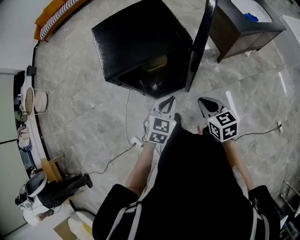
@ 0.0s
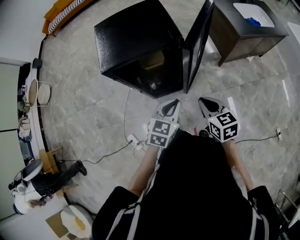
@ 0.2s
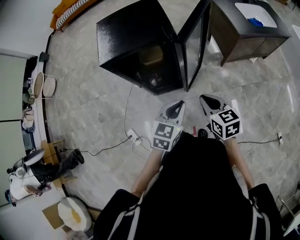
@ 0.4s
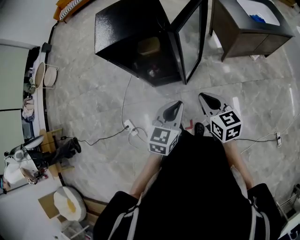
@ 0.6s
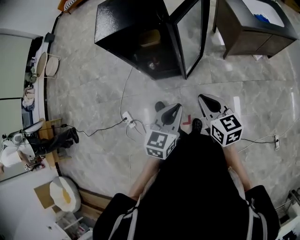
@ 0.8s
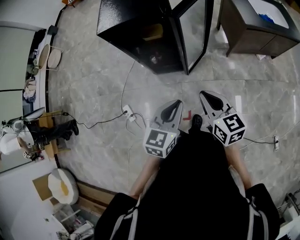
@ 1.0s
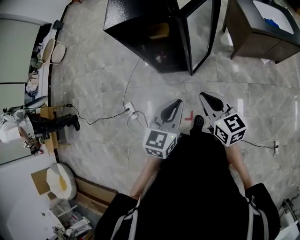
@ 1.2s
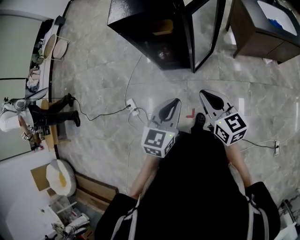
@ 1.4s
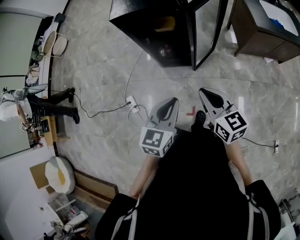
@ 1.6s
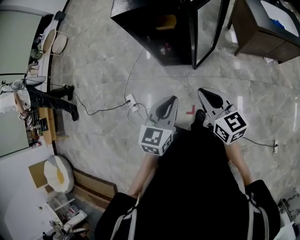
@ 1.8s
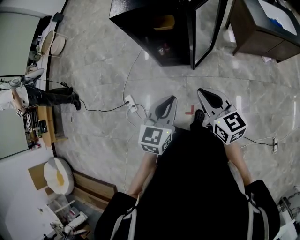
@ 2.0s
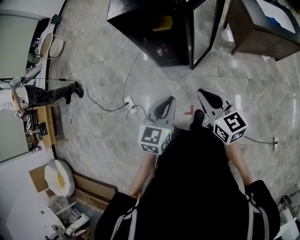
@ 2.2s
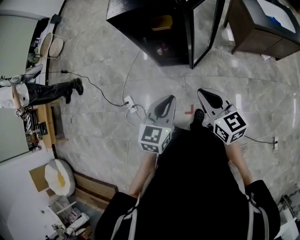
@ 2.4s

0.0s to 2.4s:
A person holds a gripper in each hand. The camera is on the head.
0.0s to 1.2s: The two grippers go roughly 25 cm backward and to the right. The left gripper turns by about 30 degrees, while the right gripper rotates some 20 degrees.
1.2s to 2.4s: The left gripper travels to the left by about 5 cm.

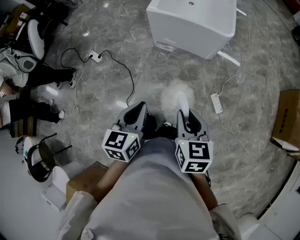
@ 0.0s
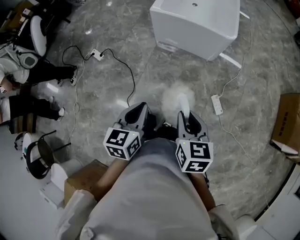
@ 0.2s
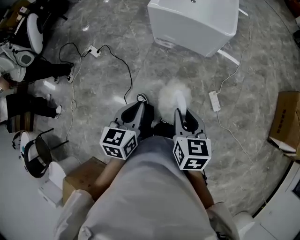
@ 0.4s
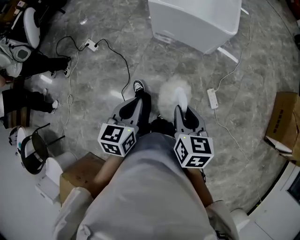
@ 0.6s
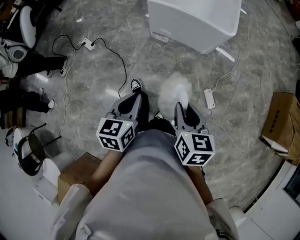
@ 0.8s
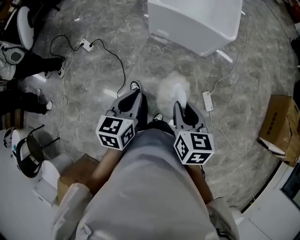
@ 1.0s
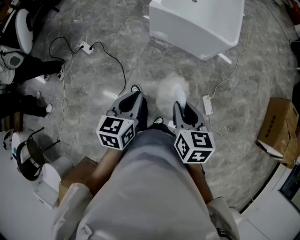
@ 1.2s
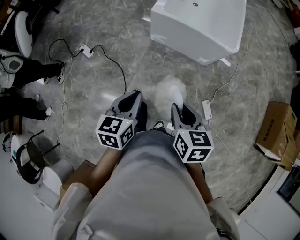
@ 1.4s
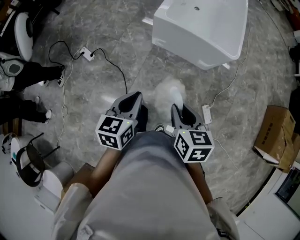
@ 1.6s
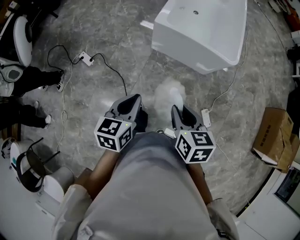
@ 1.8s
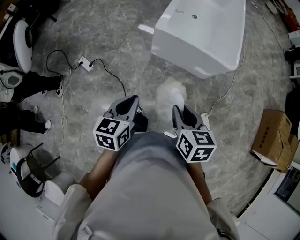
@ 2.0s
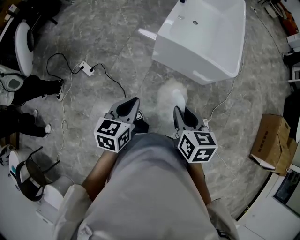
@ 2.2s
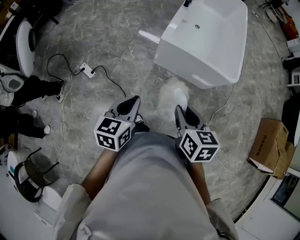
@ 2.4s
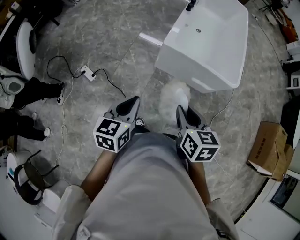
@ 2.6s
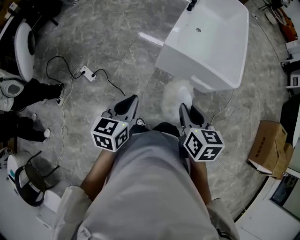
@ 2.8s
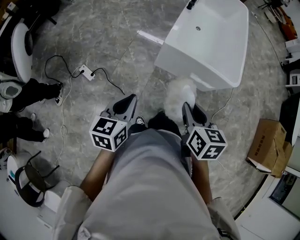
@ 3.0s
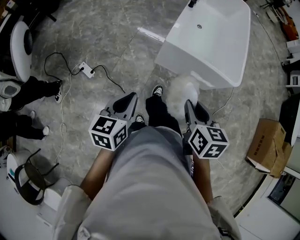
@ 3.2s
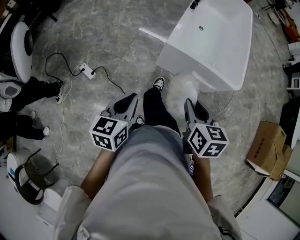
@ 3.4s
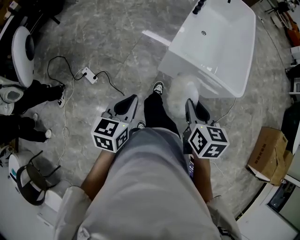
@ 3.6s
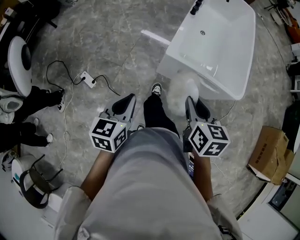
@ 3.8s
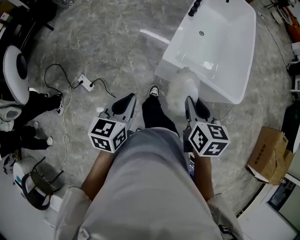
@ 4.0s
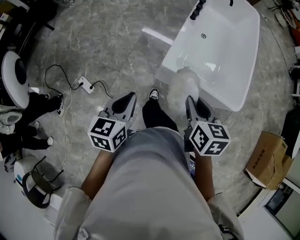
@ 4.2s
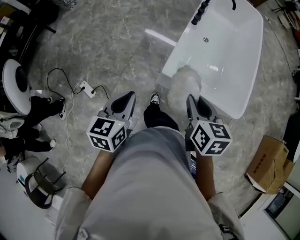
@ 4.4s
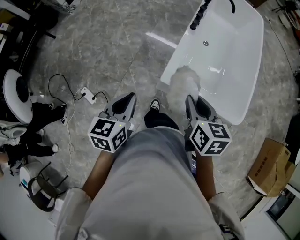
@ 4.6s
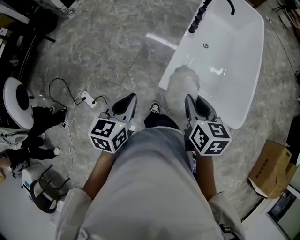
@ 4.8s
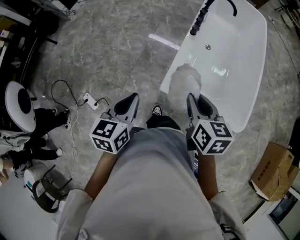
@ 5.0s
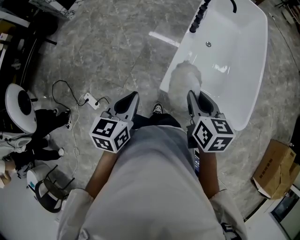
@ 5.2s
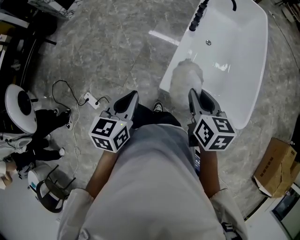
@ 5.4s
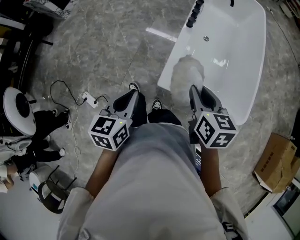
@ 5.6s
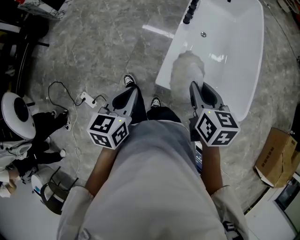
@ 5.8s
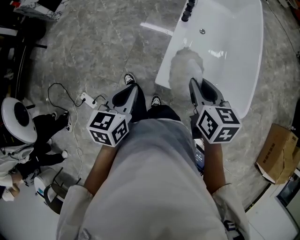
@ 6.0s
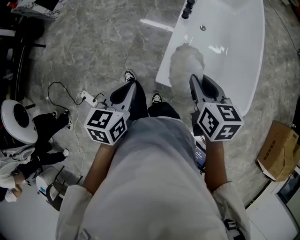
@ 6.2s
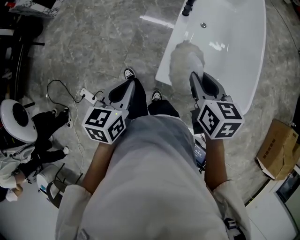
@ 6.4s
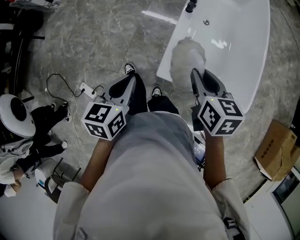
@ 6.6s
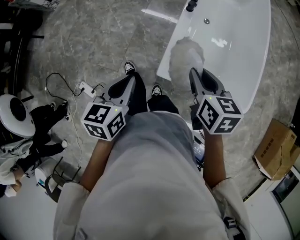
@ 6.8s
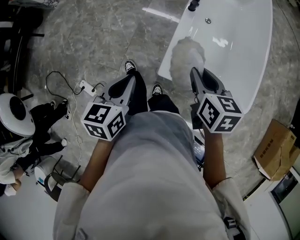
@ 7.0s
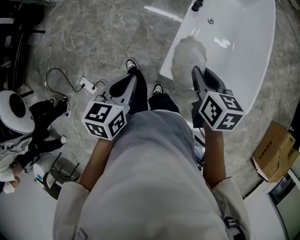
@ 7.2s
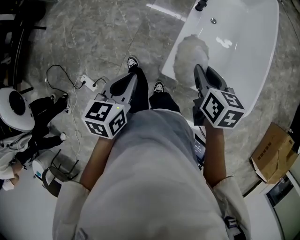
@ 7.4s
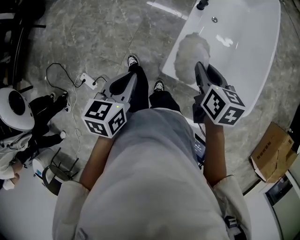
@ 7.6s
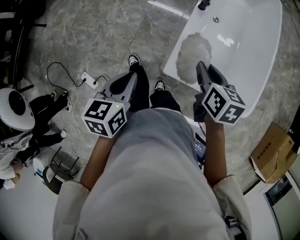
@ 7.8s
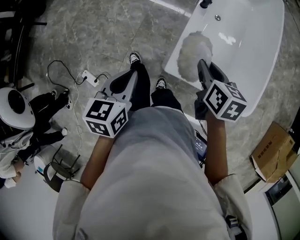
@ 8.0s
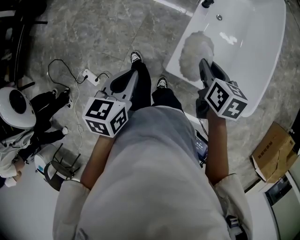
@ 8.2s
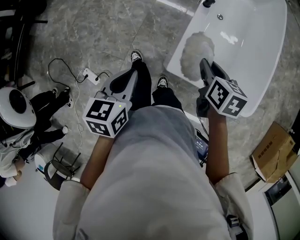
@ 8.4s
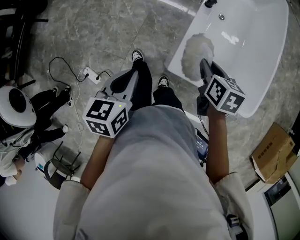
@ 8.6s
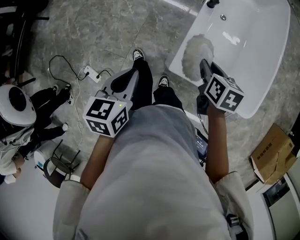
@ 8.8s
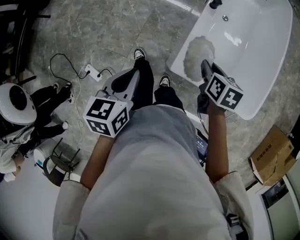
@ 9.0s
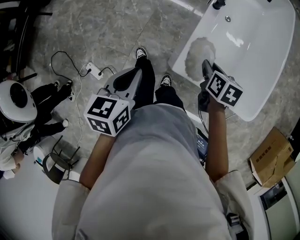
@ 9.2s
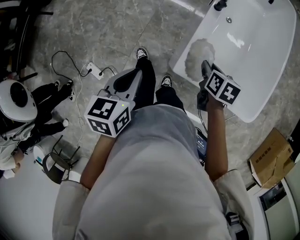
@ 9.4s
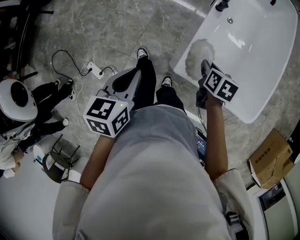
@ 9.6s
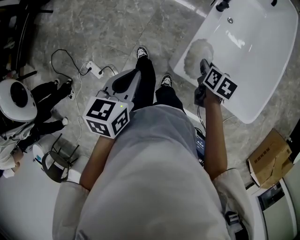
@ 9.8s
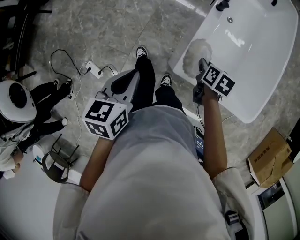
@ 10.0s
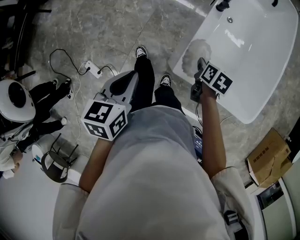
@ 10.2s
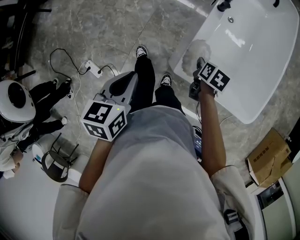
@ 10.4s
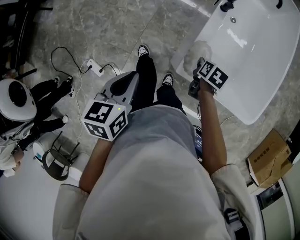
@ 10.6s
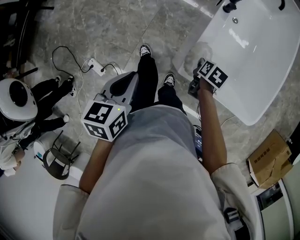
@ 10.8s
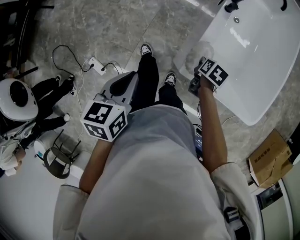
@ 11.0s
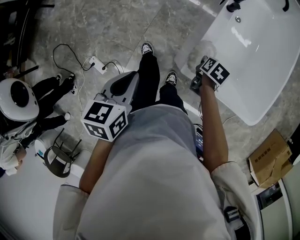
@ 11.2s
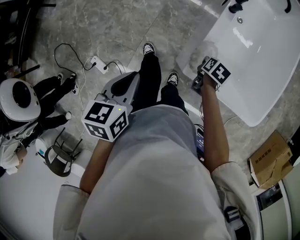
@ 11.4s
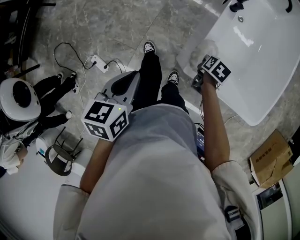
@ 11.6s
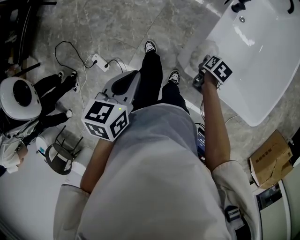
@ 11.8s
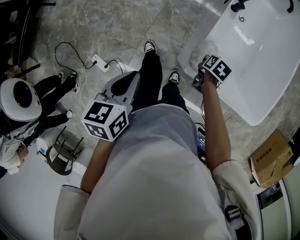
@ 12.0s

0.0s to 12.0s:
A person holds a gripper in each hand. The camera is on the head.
0.0s to 1.6s: The grippers both shift forward and to the left by about 20 cm.
1.6s to 3.0s: The right gripper heads forward and to the left, covering some 20 cm. The left gripper is displaced to the left and forward by some 20 cm.
3.0s to 4.4s: The grippers both shift forward by roughly 30 cm.
4.4s to 6.0s: Both grippers move forward, roughly 15 cm.
6.0s to 7.6s: The right gripper moves forward and downward, roughly 10 cm. The left gripper ends up roughly 5 cm from where it was.
7.6s to 9.0s: The right gripper goes some 10 cm downward.
9.0s to 10.4s: The right gripper is displaced downward by approximately 10 cm.
10.4s to 12.0s: The right gripper is displaced downward by roughly 5 cm.

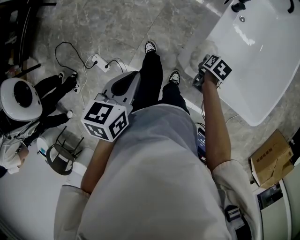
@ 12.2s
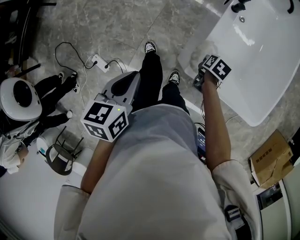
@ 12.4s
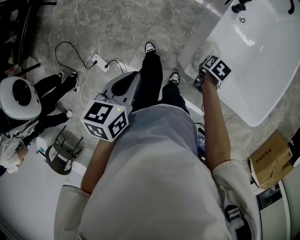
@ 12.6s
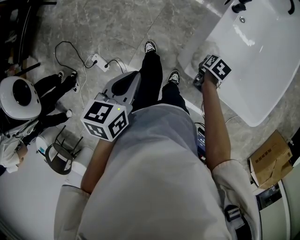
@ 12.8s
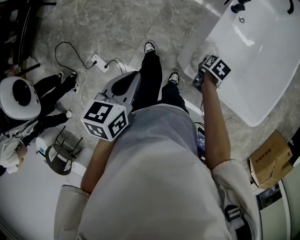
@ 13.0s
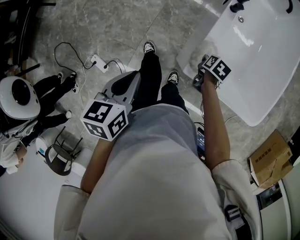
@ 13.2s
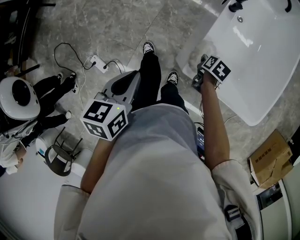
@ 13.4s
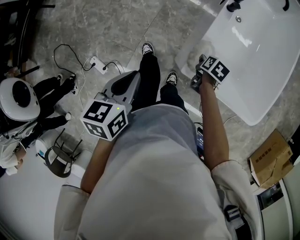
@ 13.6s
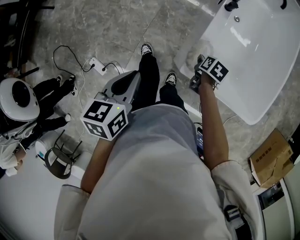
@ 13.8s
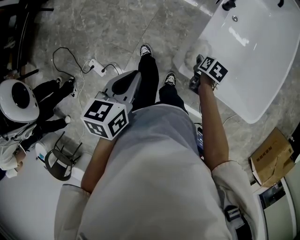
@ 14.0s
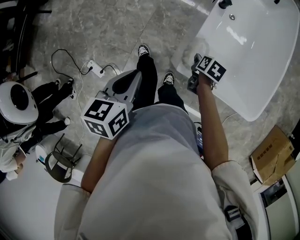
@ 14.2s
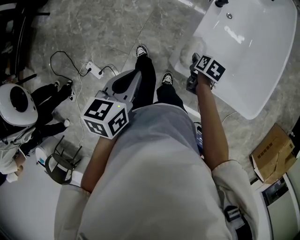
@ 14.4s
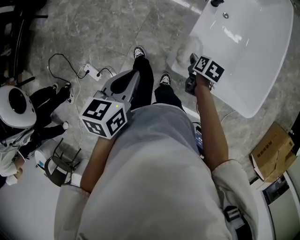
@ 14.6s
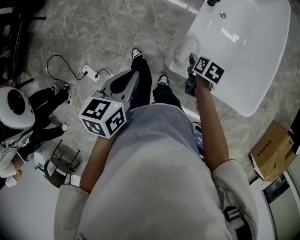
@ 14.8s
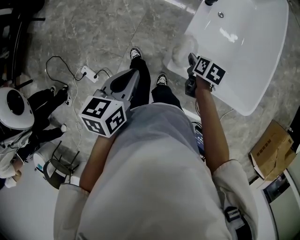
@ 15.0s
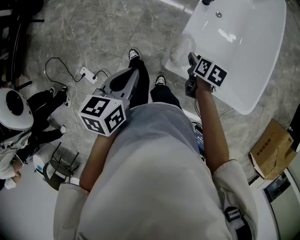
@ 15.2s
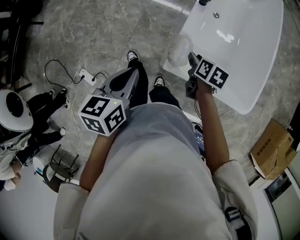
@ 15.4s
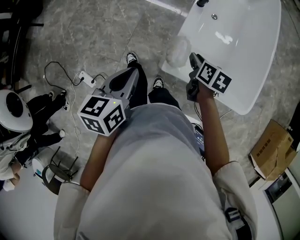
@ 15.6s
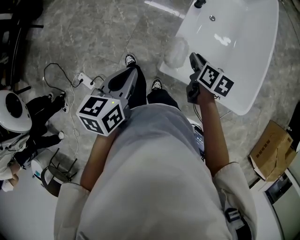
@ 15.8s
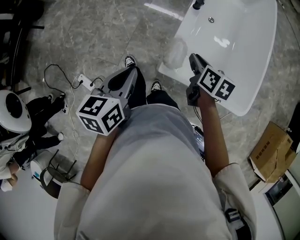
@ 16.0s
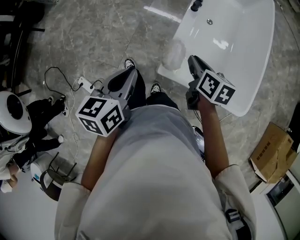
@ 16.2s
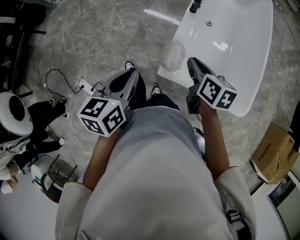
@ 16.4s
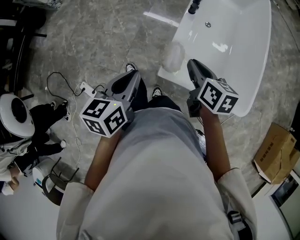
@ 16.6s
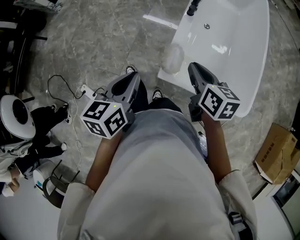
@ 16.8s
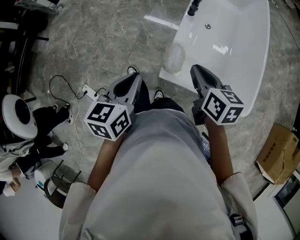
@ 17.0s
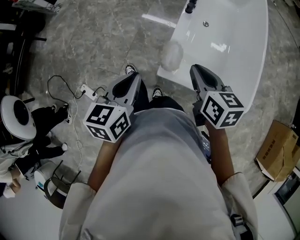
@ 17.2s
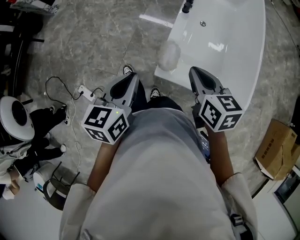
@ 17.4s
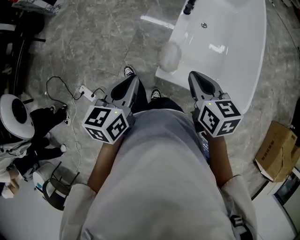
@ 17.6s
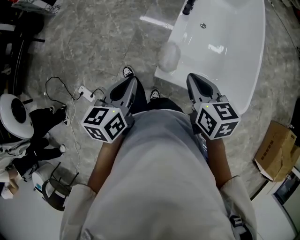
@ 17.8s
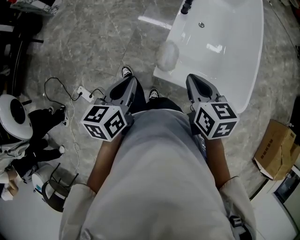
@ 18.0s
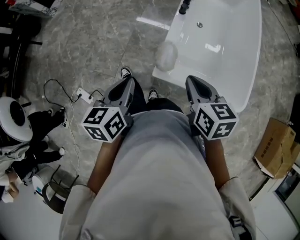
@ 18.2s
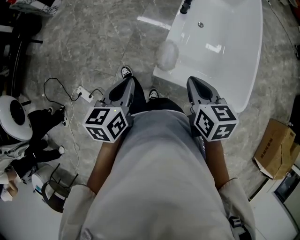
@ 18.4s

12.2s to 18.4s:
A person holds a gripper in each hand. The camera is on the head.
12.2s to 13.8s: The grippers stay close to where they were, moving slightly.
13.8s to 15.4s: The right gripper travels upward by roughly 10 cm. The left gripper is displaced to the right by some 5 cm.
15.4s to 16.8s: The left gripper changes place by about 5 cm. Meanwhile the right gripper travels upward by about 15 cm, turns by approximately 30 degrees, and closes its fingers.
16.8s to 18.4s: The right gripper moves backward, about 5 cm.

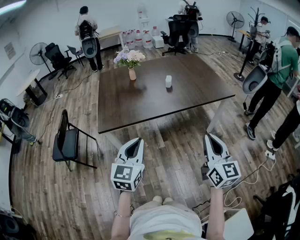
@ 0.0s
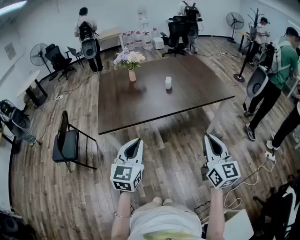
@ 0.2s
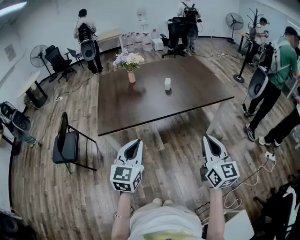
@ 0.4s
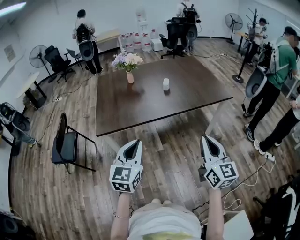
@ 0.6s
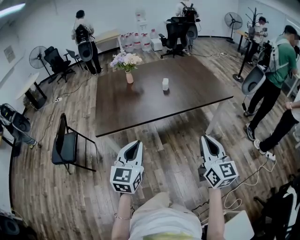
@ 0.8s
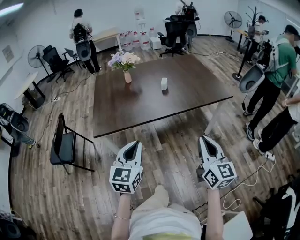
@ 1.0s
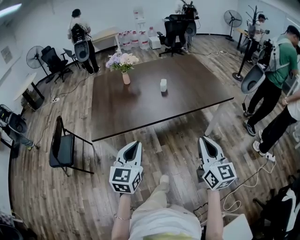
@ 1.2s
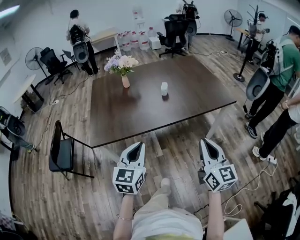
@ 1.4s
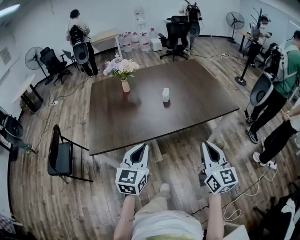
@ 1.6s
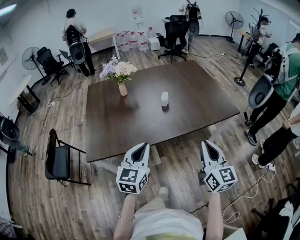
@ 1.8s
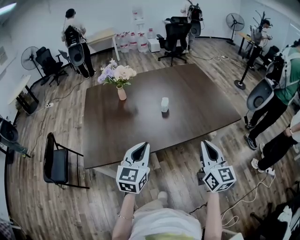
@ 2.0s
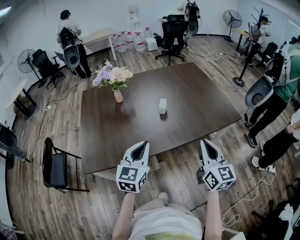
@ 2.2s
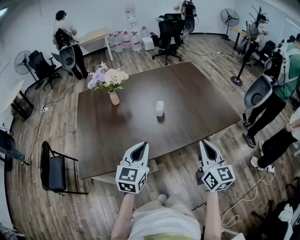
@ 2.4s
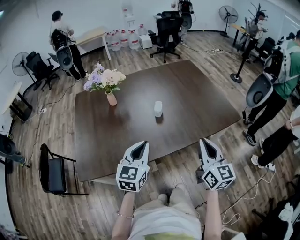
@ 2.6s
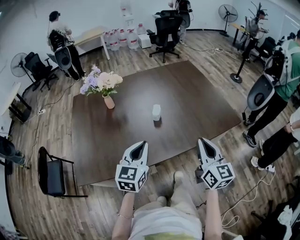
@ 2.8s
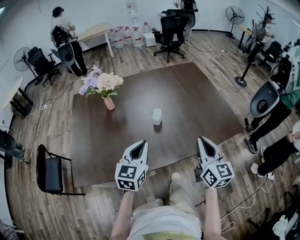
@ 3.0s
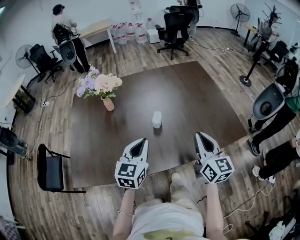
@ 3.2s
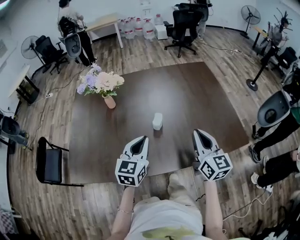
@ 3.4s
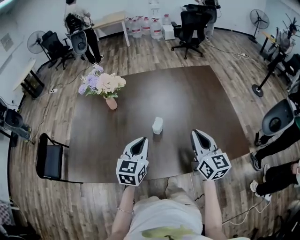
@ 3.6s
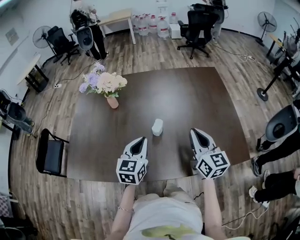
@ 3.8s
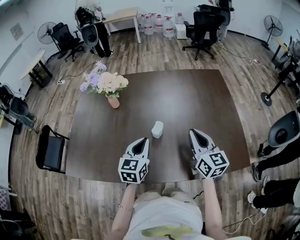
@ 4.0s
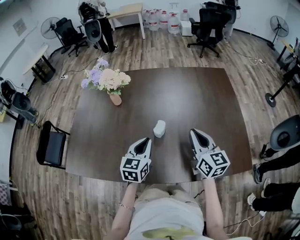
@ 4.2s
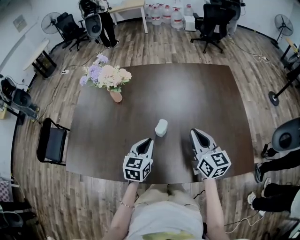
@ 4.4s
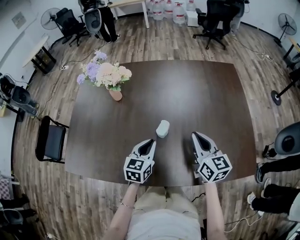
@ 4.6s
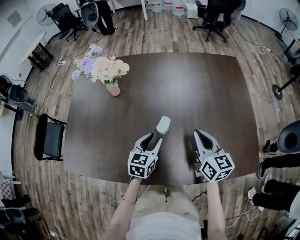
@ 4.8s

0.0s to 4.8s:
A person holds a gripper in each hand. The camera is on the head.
0.0s to 1.6s: Both grippers move forward, roughly 15 cm.
1.6s to 3.2s: Both grippers move forward, approximately 30 cm.
3.2s to 4.8s: The left gripper is displaced downward and forward by some 20 cm, turns by approximately 20 degrees, and opens its fingers. The right gripper moves forward and downward, about 20 cm, and changes its angle by approximately 20 degrees.
